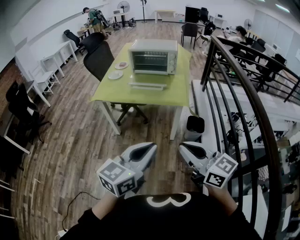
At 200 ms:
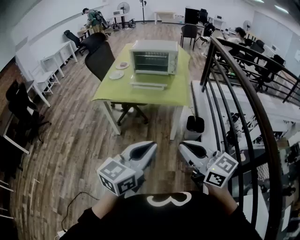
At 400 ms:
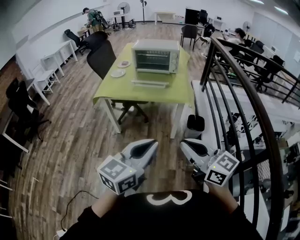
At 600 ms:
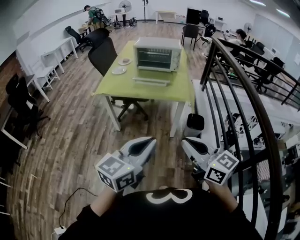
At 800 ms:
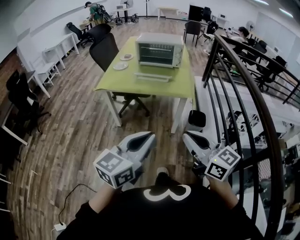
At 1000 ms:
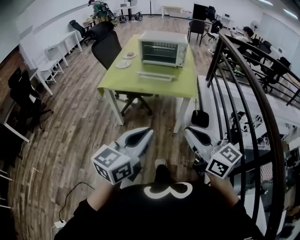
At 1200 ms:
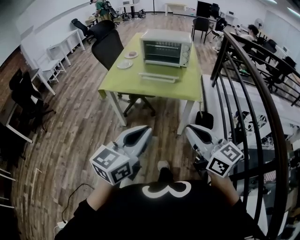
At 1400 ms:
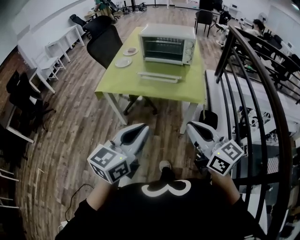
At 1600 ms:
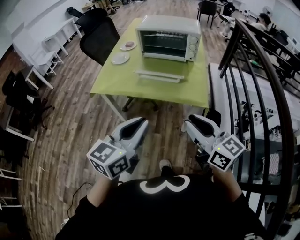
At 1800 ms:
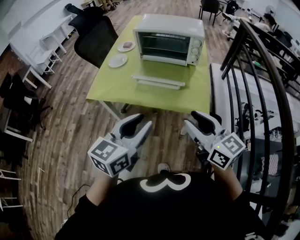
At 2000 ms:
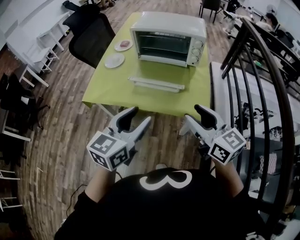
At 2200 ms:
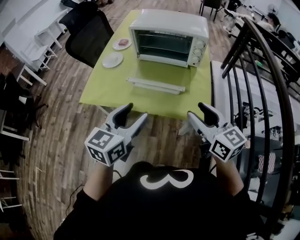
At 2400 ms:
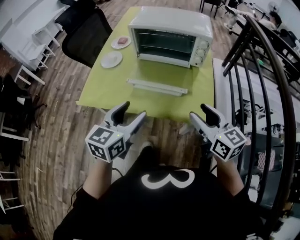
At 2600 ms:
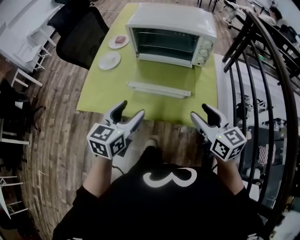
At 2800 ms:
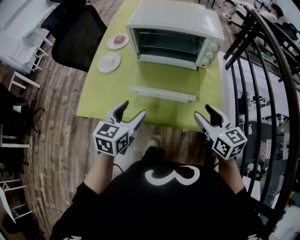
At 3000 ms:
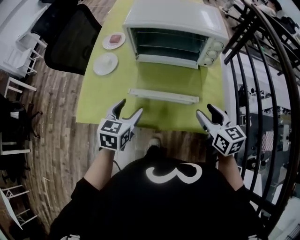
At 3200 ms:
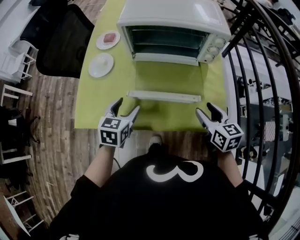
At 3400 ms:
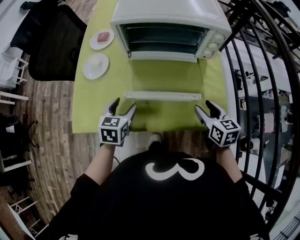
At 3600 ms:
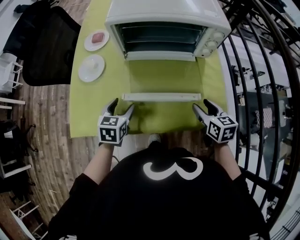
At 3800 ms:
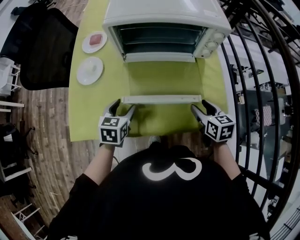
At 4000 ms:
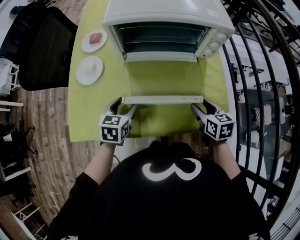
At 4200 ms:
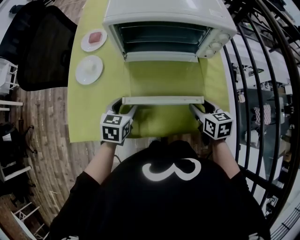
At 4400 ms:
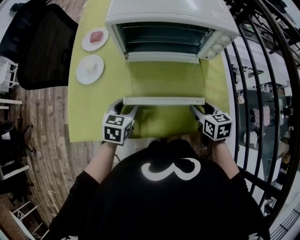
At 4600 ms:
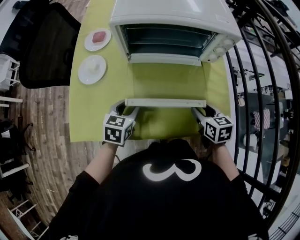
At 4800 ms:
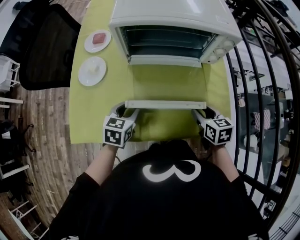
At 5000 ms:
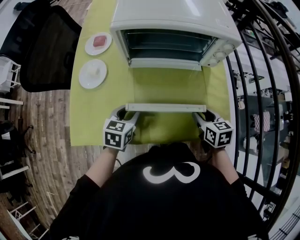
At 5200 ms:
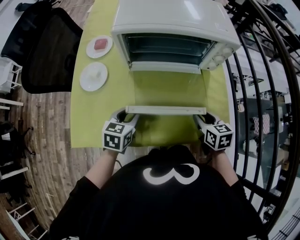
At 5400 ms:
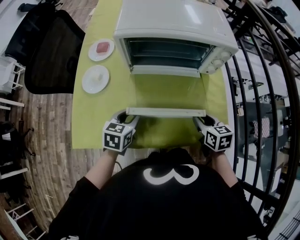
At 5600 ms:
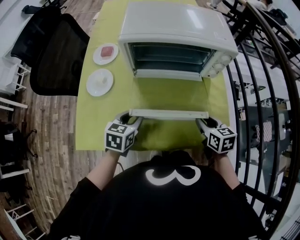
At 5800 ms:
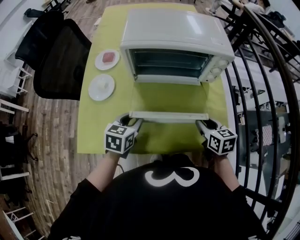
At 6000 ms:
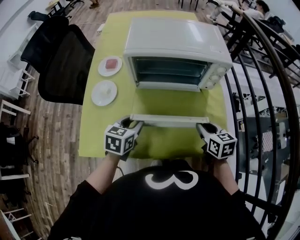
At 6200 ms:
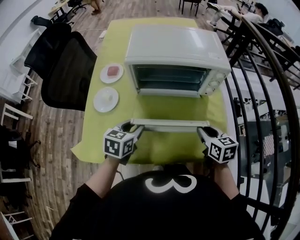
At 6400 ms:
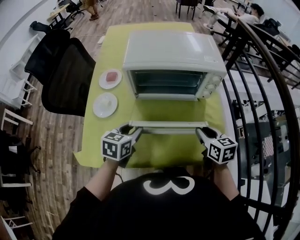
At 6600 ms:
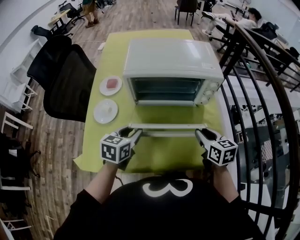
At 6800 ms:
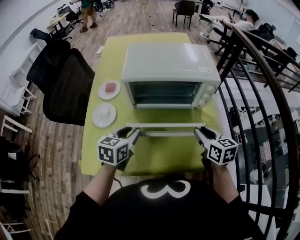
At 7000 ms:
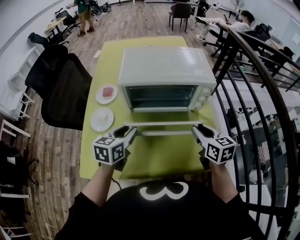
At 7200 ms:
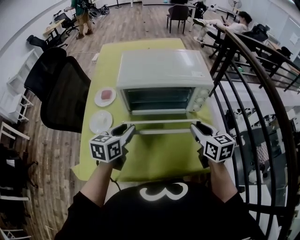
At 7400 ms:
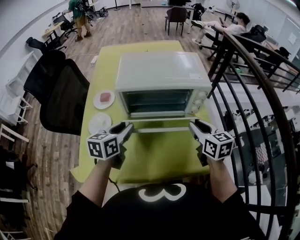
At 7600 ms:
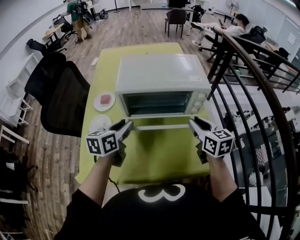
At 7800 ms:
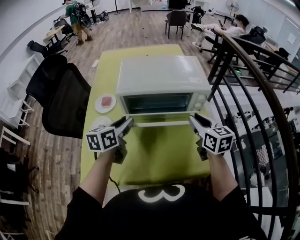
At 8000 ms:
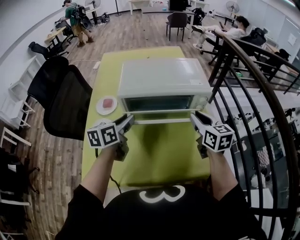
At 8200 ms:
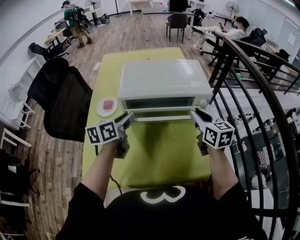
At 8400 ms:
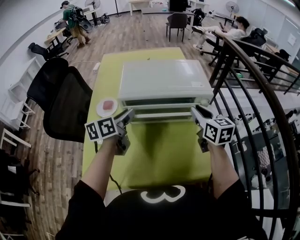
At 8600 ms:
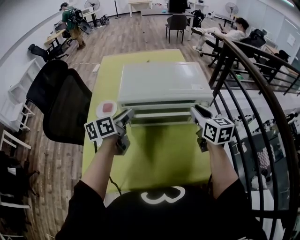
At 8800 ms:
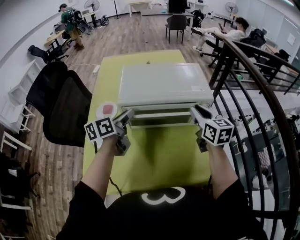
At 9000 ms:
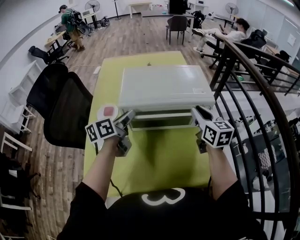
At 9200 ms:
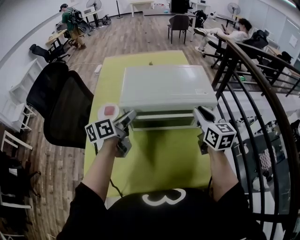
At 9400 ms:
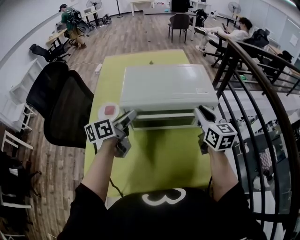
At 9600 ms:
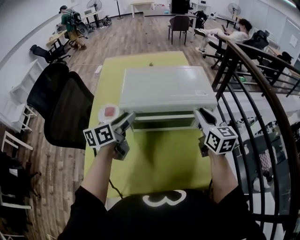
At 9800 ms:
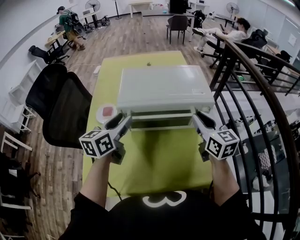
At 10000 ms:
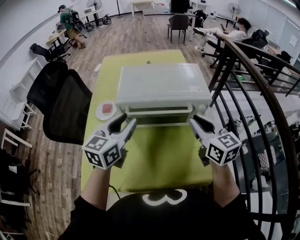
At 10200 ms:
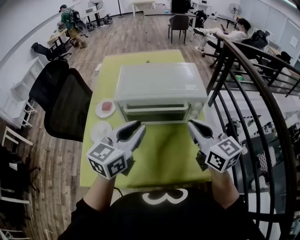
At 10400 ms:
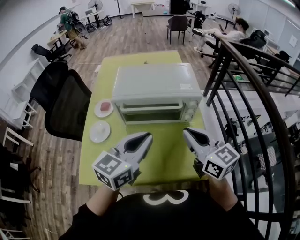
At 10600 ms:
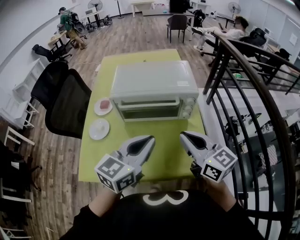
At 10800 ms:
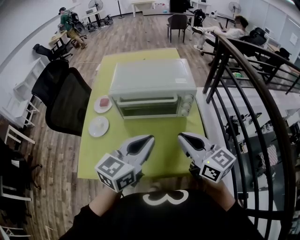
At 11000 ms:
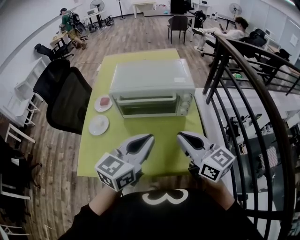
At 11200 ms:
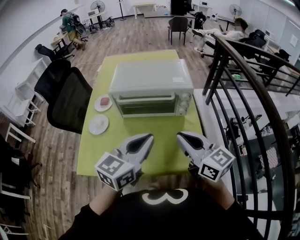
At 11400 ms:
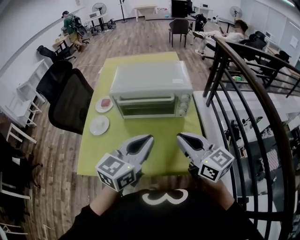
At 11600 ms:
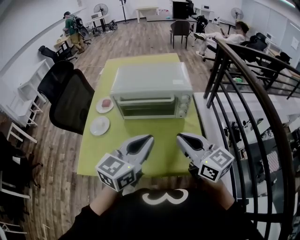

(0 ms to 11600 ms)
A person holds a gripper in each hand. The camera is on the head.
0 ms - 1400 ms: The left gripper travels forward and to the left by roughly 15 cm. The right gripper travels forward by some 15 cm.
1400 ms - 2800 ms: The two grippers travel together, forward, about 40 cm. The right gripper rotates approximately 20 degrees, and opens up. Meanwhile the left gripper rotates some 20 degrees, and opens.
2800 ms - 4400 ms: Both grippers travel together downward and forward, some 20 cm. The right gripper turns by roughly 30 degrees.
4400 ms - 5800 ms: The left gripper moves approximately 5 cm, while the right gripper ends up approximately 5 cm from where it was.
5800 ms - 7200 ms: Both grippers move upward and forward, roughly 15 cm.
7200 ms - 8800 ms: Both grippers travel together forward and upward, about 15 cm. The left gripper turns by some 30 degrees.
8800 ms - 10200 ms: The right gripper travels backward and upward by approximately 15 cm, and closes; the left gripper shifts roughly 20 cm backward, to the right and upward, and turns by about 40 degrees.
10200 ms - 11600 ms: The left gripper goes some 15 cm backward and to the right, while the right gripper shifts approximately 15 cm backward.

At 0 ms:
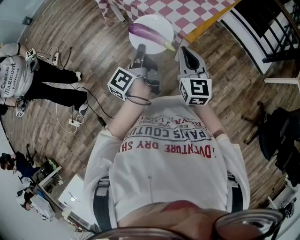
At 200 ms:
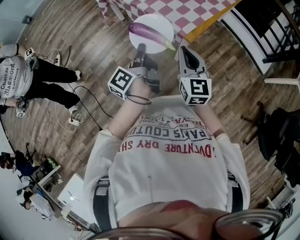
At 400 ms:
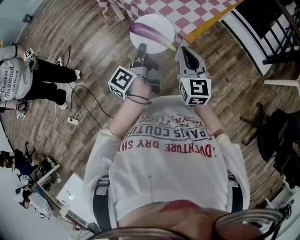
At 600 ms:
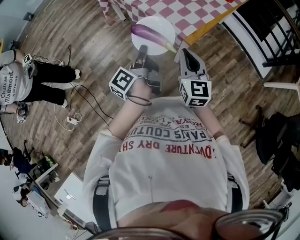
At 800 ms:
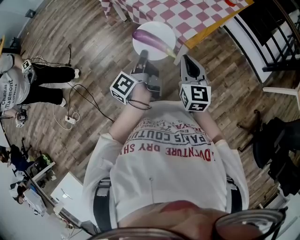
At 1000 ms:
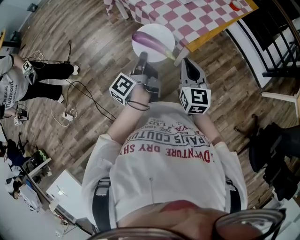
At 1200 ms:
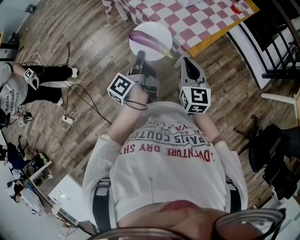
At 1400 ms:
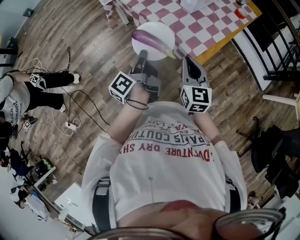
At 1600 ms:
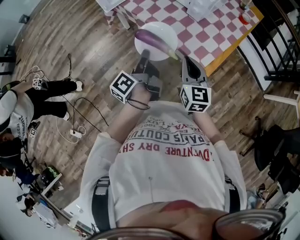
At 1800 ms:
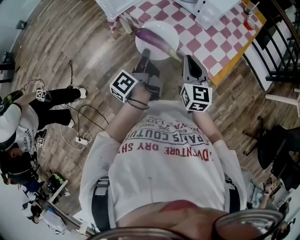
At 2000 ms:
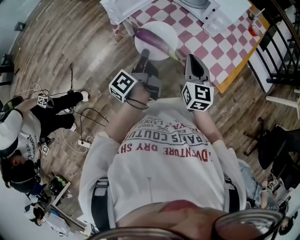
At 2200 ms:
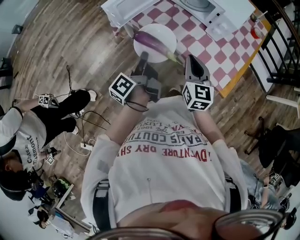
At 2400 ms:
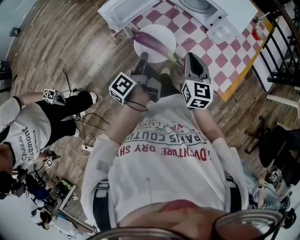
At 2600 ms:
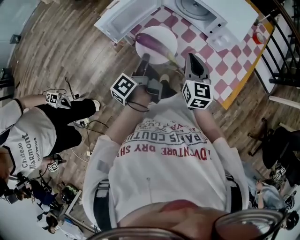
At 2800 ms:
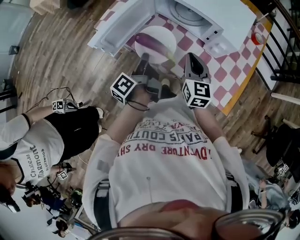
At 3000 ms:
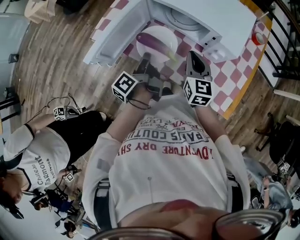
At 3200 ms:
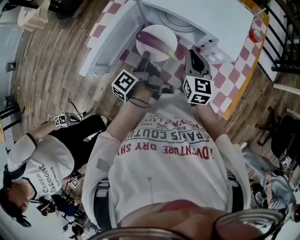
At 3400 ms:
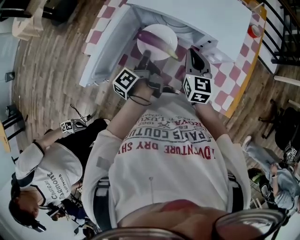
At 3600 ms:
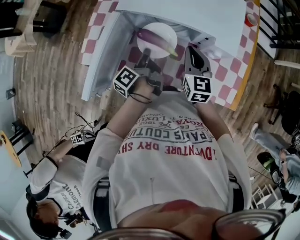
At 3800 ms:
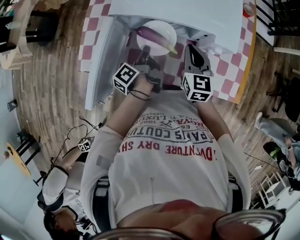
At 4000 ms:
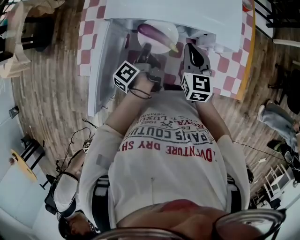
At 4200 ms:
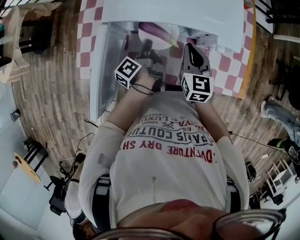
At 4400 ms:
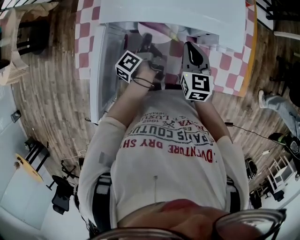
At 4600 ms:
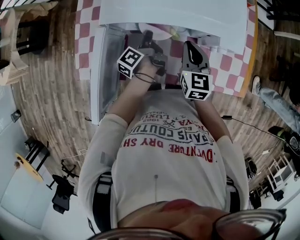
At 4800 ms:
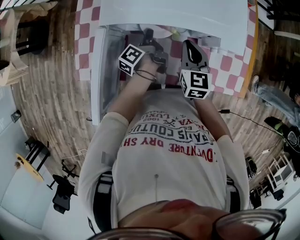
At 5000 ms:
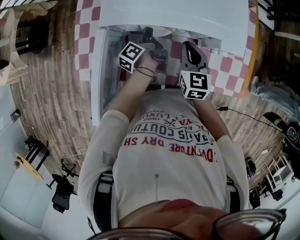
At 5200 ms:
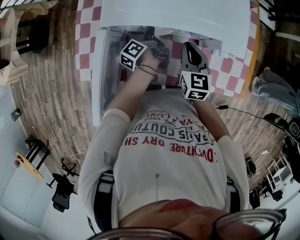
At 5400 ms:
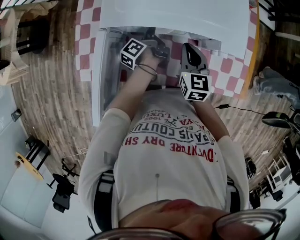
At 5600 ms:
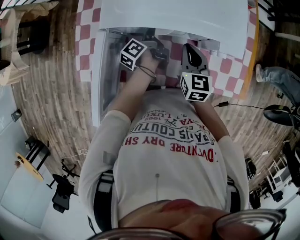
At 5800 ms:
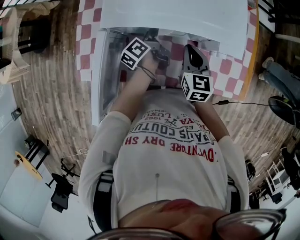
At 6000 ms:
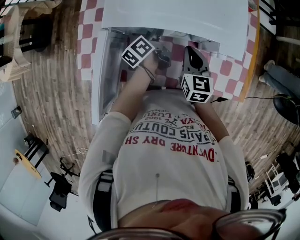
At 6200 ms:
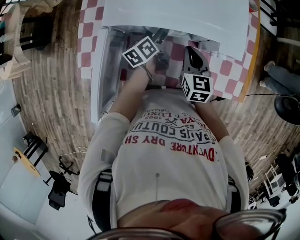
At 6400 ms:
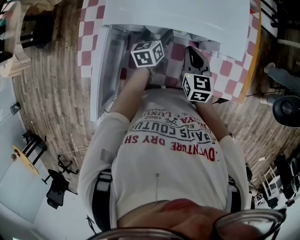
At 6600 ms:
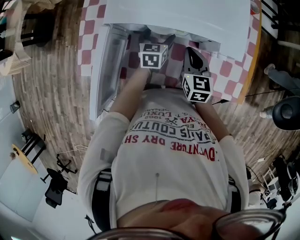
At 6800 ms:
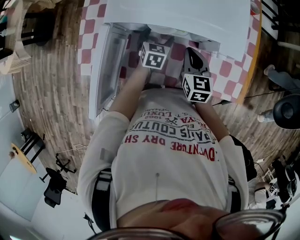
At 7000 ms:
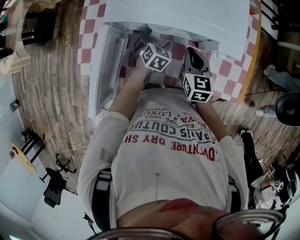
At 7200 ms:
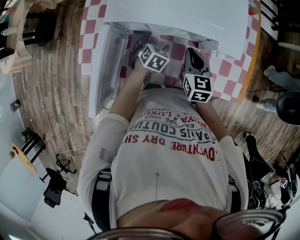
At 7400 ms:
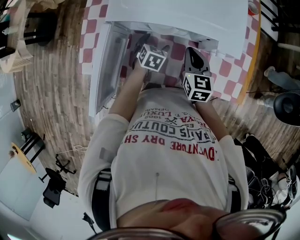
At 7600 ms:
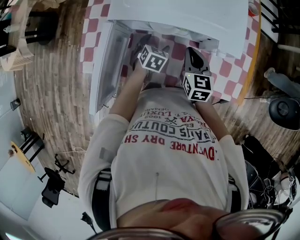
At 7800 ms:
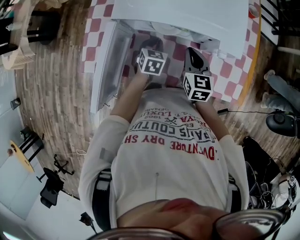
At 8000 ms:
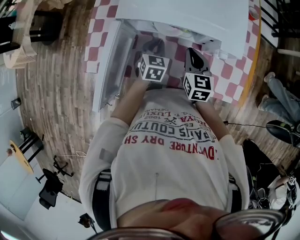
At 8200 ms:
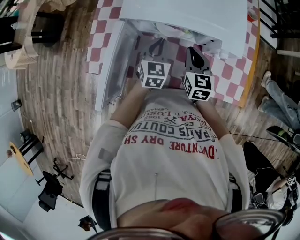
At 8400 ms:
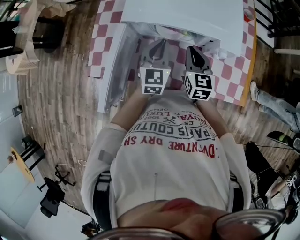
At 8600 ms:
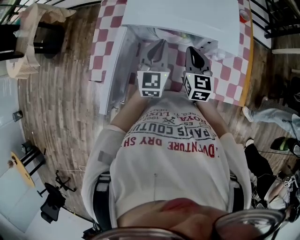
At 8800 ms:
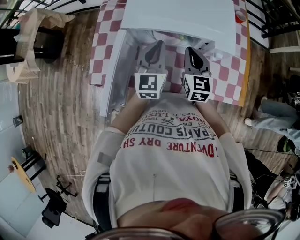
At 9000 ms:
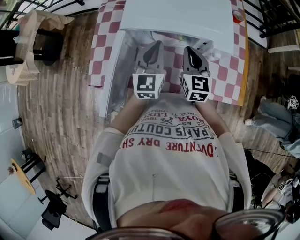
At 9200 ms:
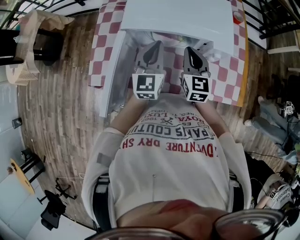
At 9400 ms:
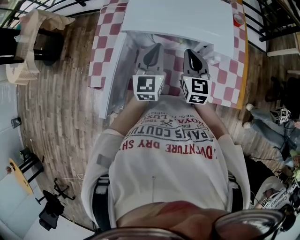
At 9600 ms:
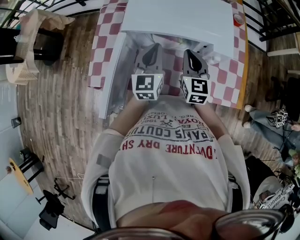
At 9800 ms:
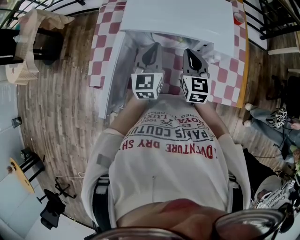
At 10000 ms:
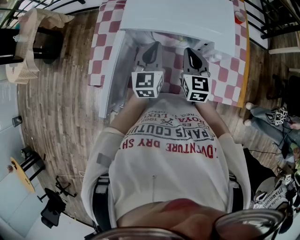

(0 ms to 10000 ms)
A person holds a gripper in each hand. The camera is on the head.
0 ms - 1400 ms: The two grippers go about 15 cm forward.
1400 ms - 2800 ms: Both grippers travel together forward and to the left, roughly 40 cm.
2800 ms - 4200 ms: The left gripper ends up some 25 cm from where it was, and swivels some 30 degrees. Meanwhile the right gripper moves approximately 15 cm, and rotates roughly 30 degrees.
4200 ms - 5800 ms: The left gripper shifts approximately 10 cm forward, and opens its fingers.
5800 ms - 7200 ms: The left gripper shifts about 10 cm backward and downward, rotates around the line of its fingers by approximately 90 degrees, clockwise from behind, and opens.
7200 ms - 8600 ms: The right gripper travels upward by roughly 10 cm; the left gripper is displaced upward by some 25 cm, tips its fingers upward by about 50 degrees, and closes its fingers.
8600 ms - 10000 ms: The grippers move only a little.

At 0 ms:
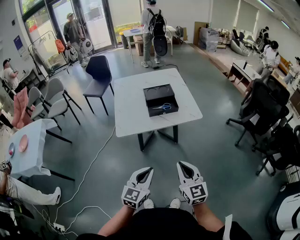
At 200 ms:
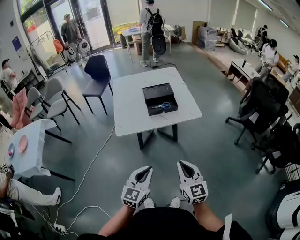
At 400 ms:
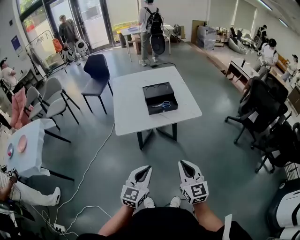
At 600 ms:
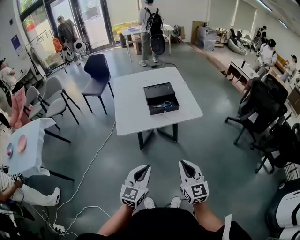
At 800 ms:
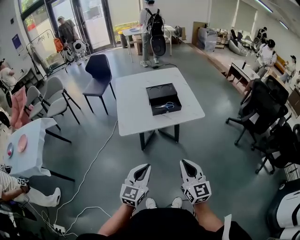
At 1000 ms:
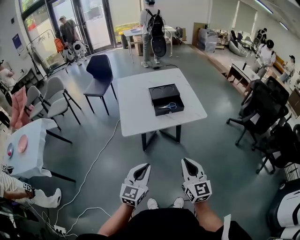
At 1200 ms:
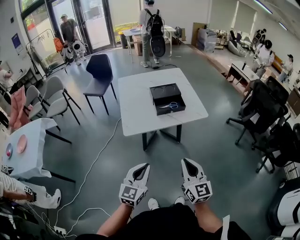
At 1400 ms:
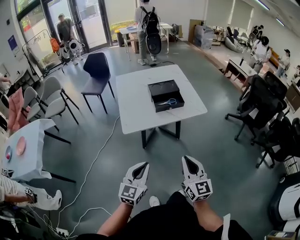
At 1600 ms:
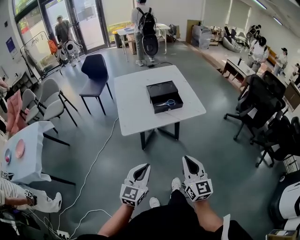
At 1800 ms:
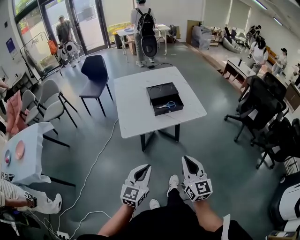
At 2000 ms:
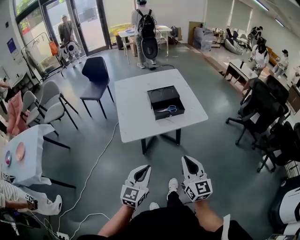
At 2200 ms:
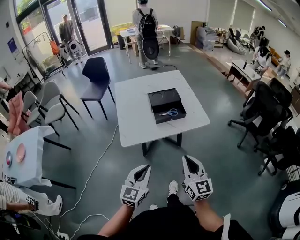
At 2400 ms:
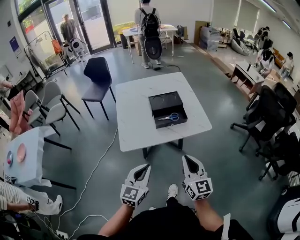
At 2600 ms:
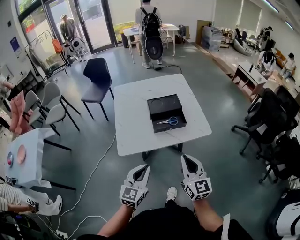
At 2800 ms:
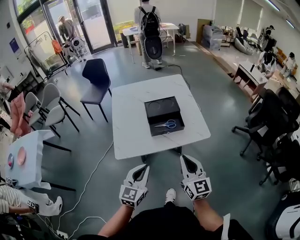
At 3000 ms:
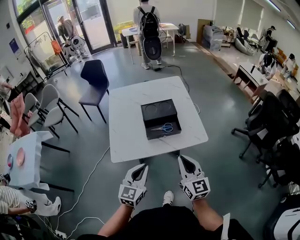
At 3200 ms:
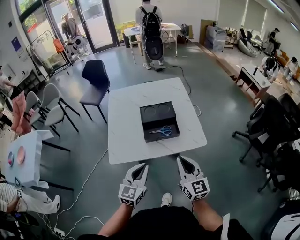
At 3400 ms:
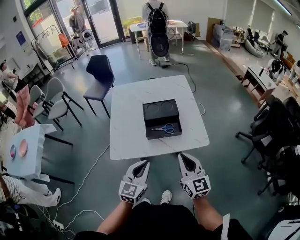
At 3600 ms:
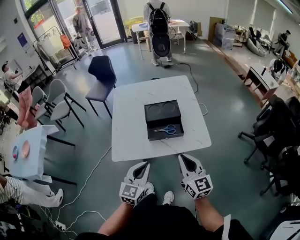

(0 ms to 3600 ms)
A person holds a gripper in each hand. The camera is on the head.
0 ms - 1800 ms: The left gripper is displaced to the left by roughly 10 cm, while the right gripper shifts roughly 5 cm to the left.
1800 ms - 3600 ms: The grippers both shift forward by some 25 cm.
